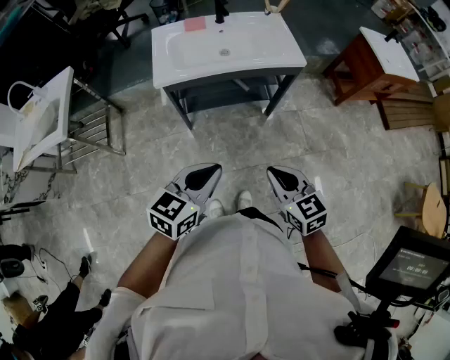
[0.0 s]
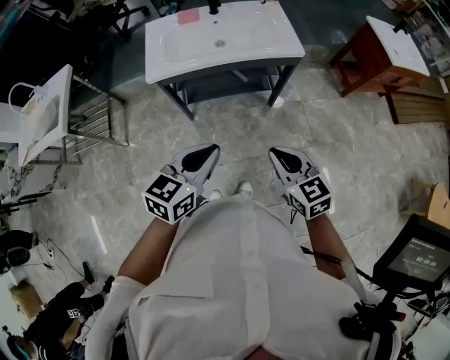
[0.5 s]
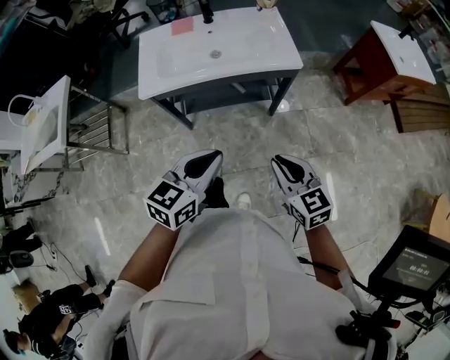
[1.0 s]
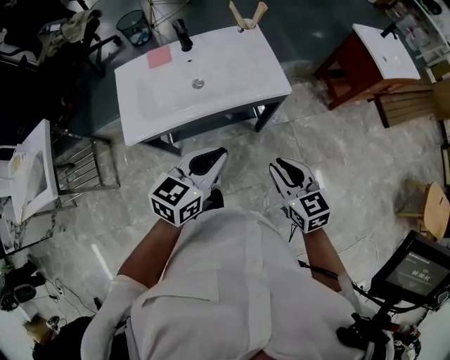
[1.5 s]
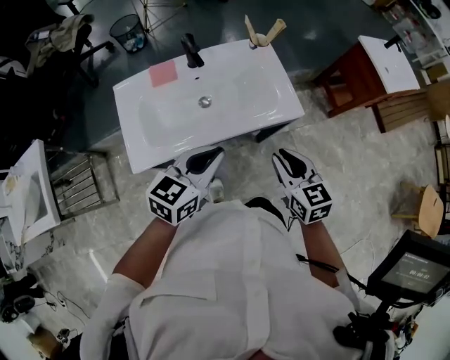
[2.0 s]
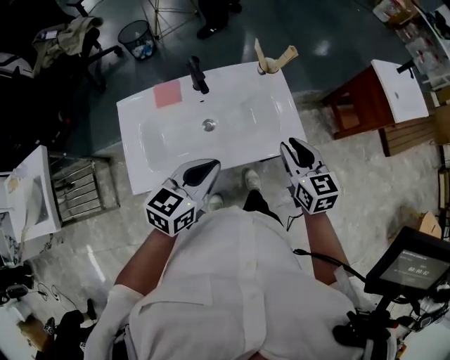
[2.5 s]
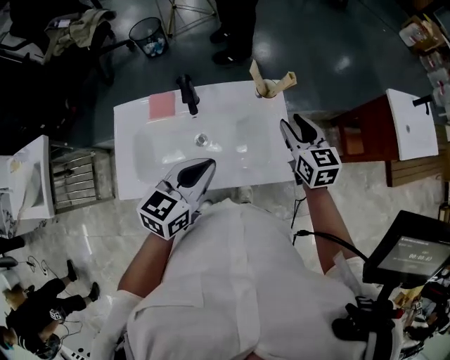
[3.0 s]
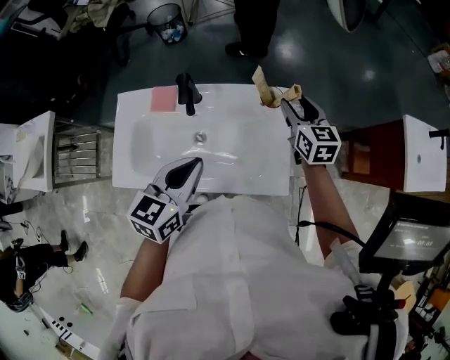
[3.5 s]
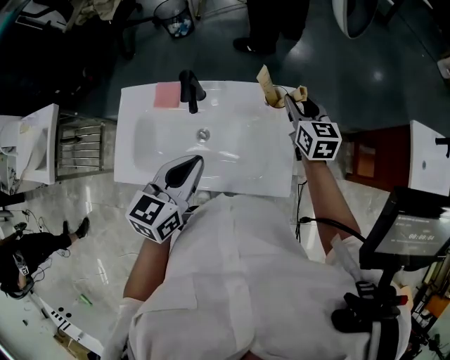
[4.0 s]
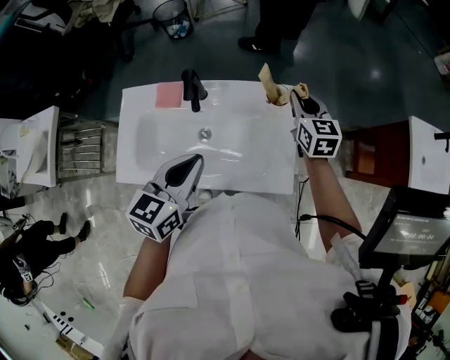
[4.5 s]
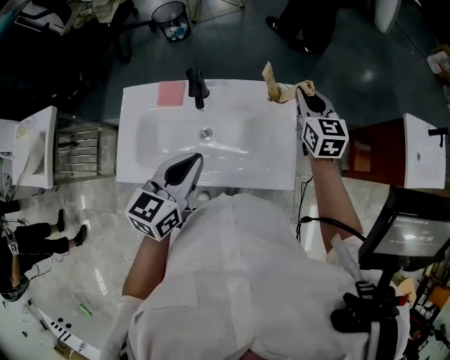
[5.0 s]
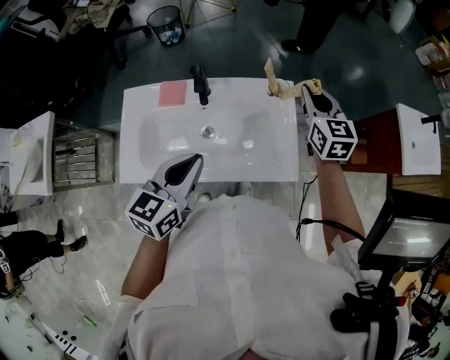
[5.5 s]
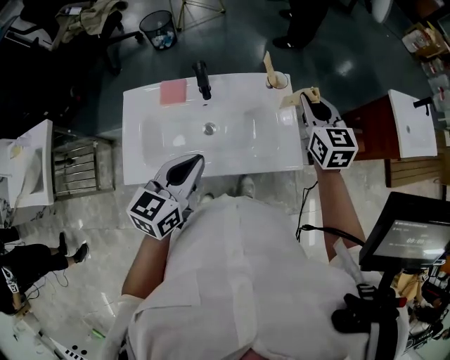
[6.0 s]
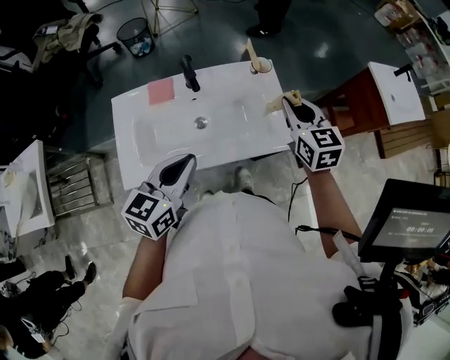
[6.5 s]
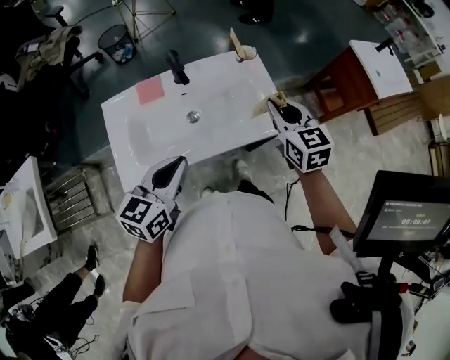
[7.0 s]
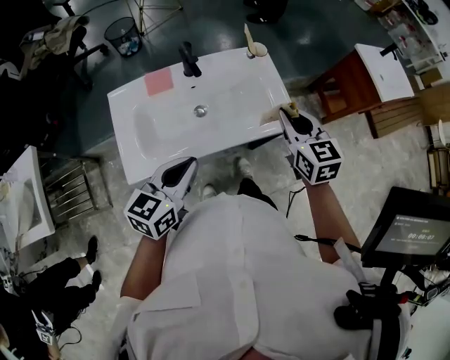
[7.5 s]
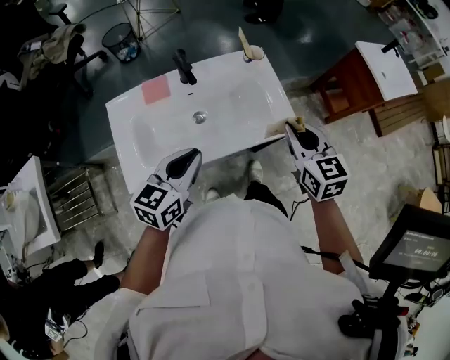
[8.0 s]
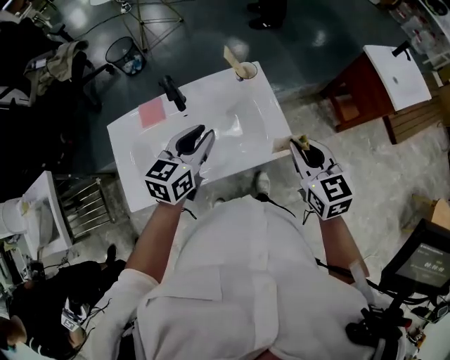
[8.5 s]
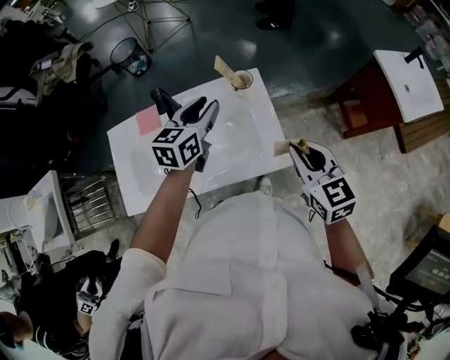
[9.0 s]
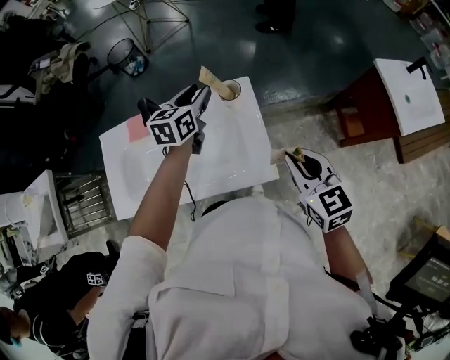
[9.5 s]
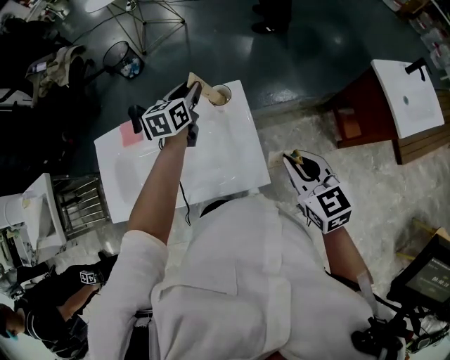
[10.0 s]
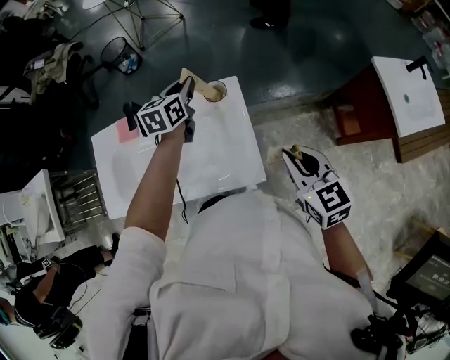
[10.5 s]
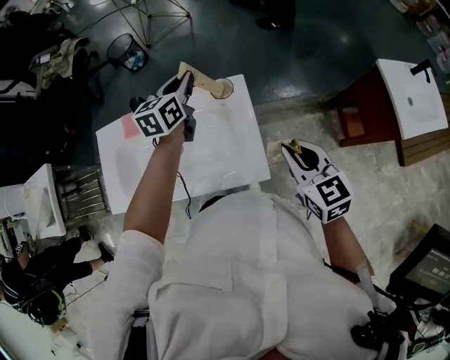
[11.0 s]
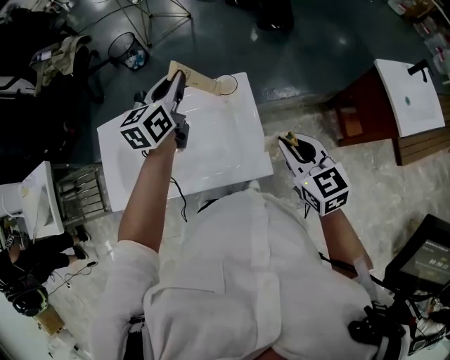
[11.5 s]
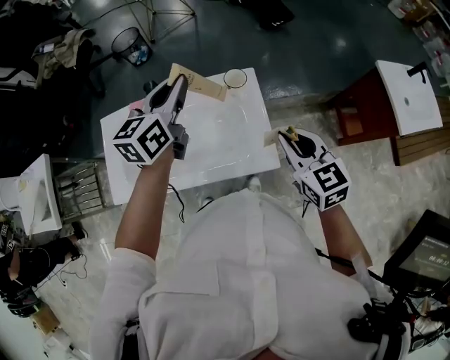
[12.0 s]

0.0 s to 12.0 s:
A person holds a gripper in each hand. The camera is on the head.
0.0 to 2.0 s: Both grippers travel together forward, some 40 cm.
2.0 to 4.0 s: The right gripper moves forward, about 40 cm, and opens. Meanwhile the left gripper shifts about 20 cm forward, and swivels about 30 degrees.
4.0 to 6.0 s: The left gripper heads backward and to the left, covering some 10 cm. Meanwhile the right gripper travels backward and upward by about 15 cm, and closes its fingers.
6.0 to 8.0 s: The right gripper is displaced backward by some 20 cm.
8.0 to 10.0 s: The left gripper is displaced forward by about 40 cm, turns by approximately 30 degrees, and opens; the right gripper travels to the right and forward by about 20 cm.
10.0 to 12.0 s: The left gripper goes about 20 cm upward and backward, and closes its fingers. The right gripper changes place by roughly 5 cm.

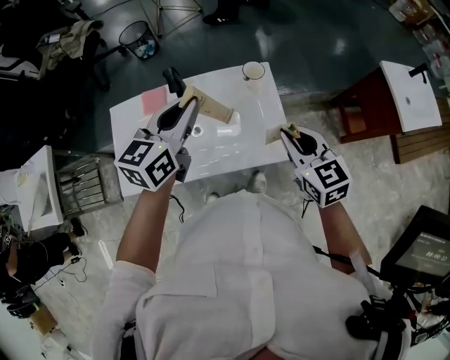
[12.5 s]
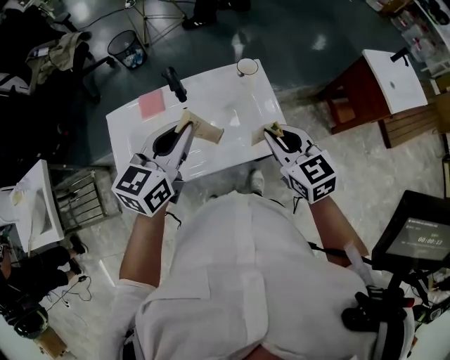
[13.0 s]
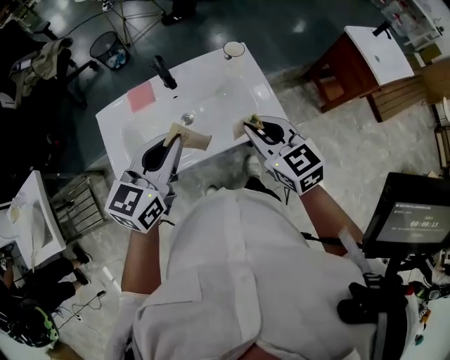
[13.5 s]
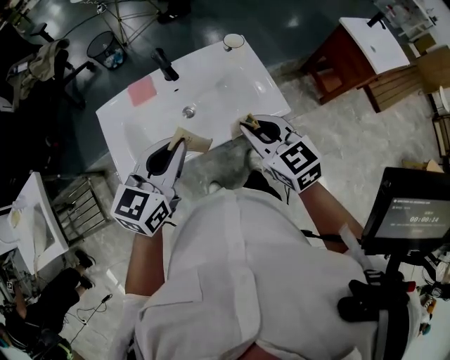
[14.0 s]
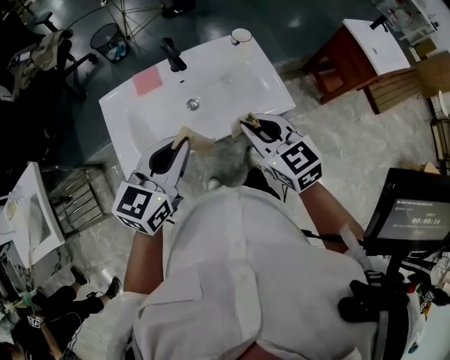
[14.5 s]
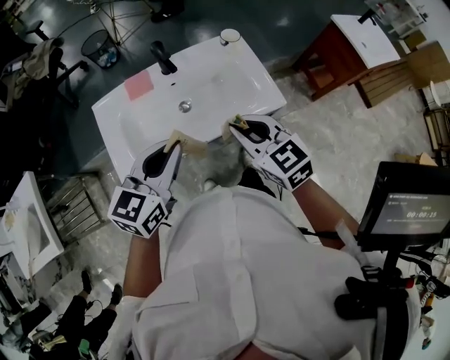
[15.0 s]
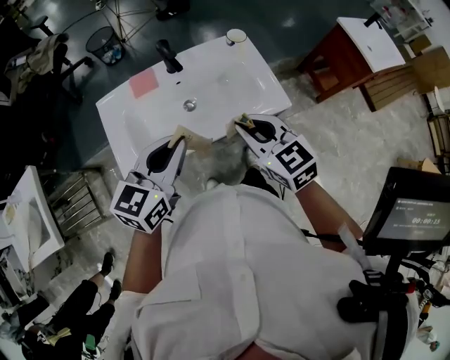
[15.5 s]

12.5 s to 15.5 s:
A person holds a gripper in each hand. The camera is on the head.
12.5 to 14.0 s: The right gripper goes roughly 20 cm to the left and backward. Meanwhile the left gripper shifts approximately 20 cm backward.
14.0 to 15.5 s: There are only small adjustments of the grippers.

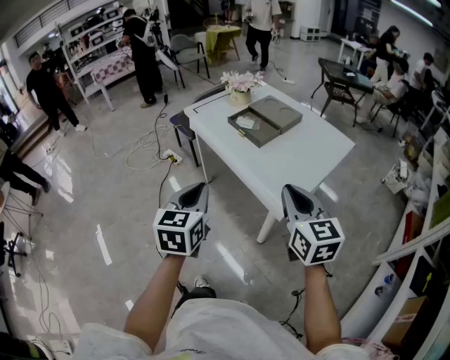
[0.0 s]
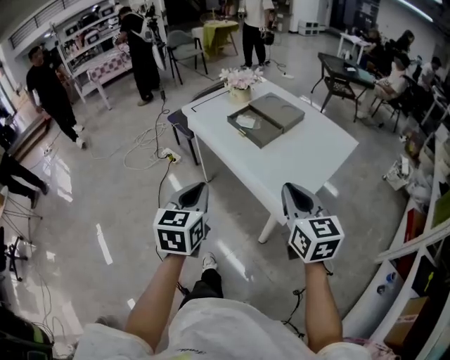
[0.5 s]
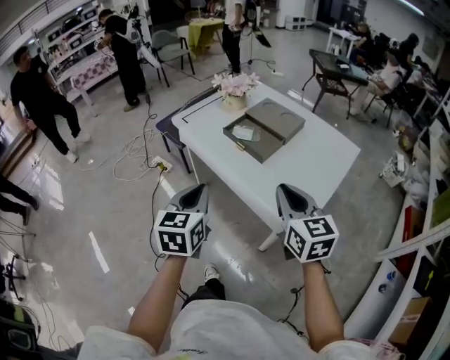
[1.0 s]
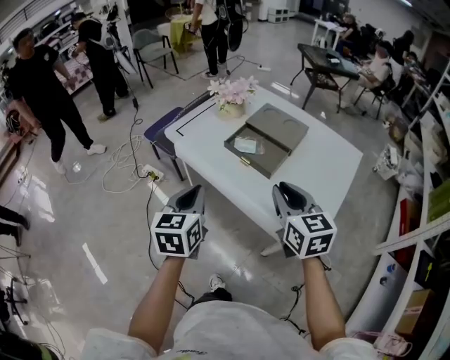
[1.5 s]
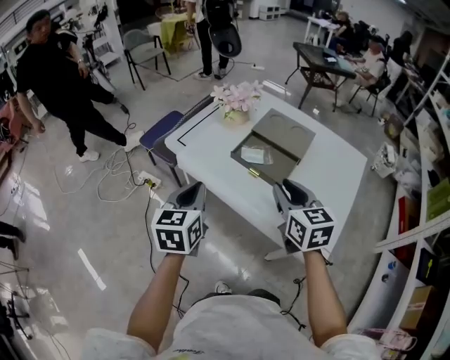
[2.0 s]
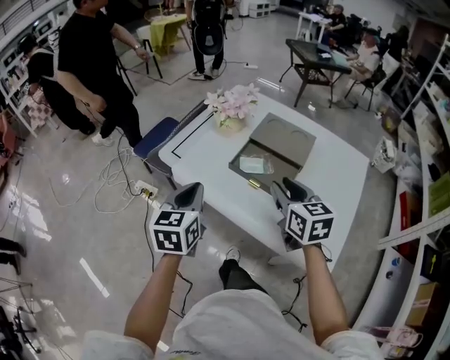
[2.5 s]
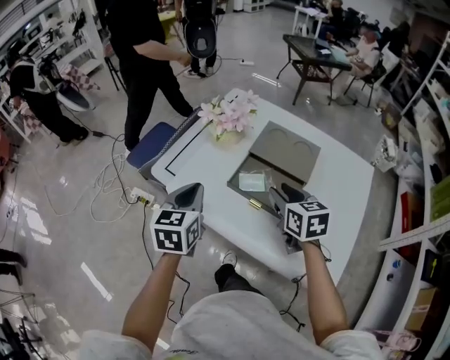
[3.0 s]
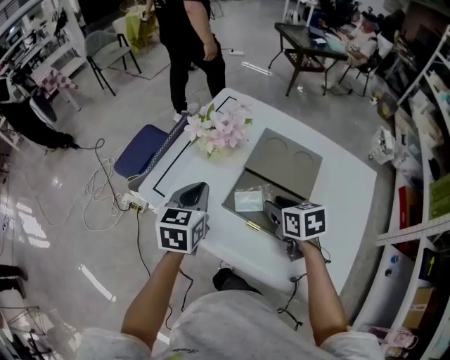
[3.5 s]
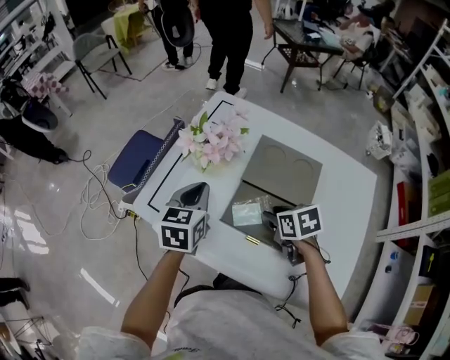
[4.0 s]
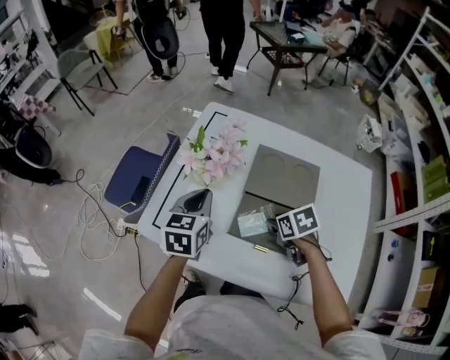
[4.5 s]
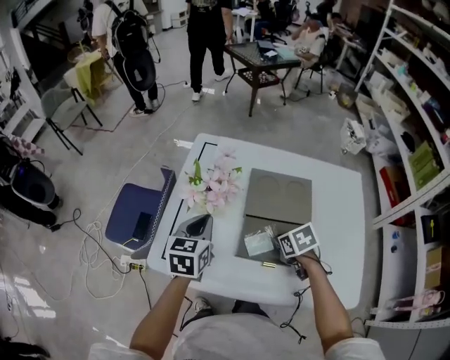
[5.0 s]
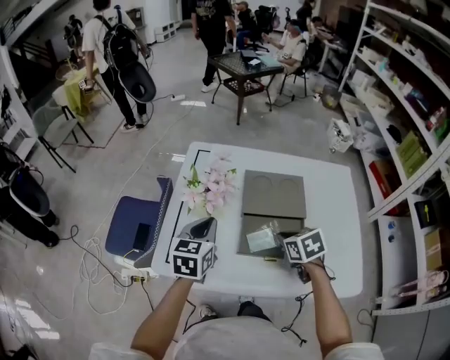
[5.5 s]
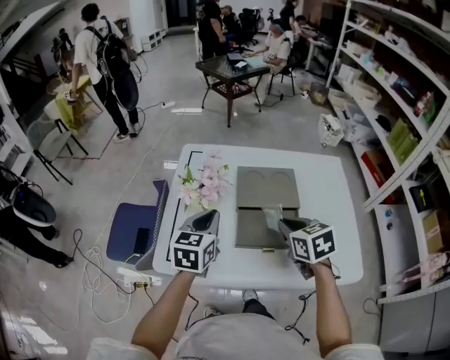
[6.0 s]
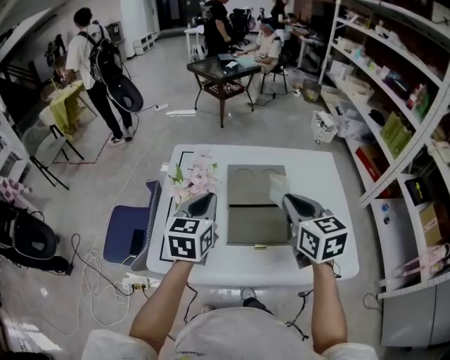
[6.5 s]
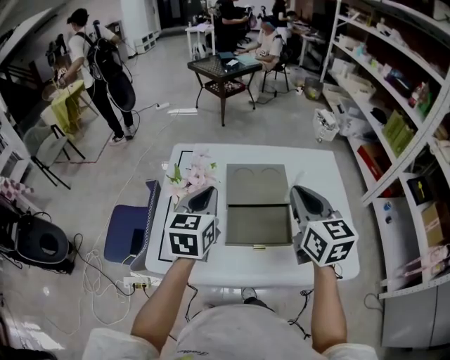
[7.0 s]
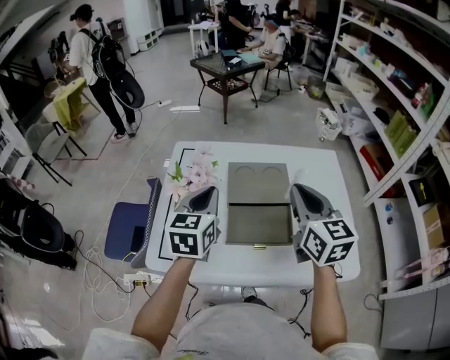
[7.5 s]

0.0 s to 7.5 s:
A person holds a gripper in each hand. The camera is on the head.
0.0 to 2.0 s: The two grippers go approximately 30 cm forward. The right gripper opens up.
2.0 to 4.0 s: The right gripper moves forward and downward, roughly 25 cm, and tilts its fingers roughly 30 degrees downward. The left gripper goes approximately 30 cm forward.
4.0 to 5.5 s: The right gripper closes; the left gripper rotates roughly 20 degrees.
5.5 to 7.5 s: The left gripper travels upward and to the right by roughly 10 cm; the right gripper is displaced upward by roughly 20 cm, and tilts its fingers about 40 degrees upward.

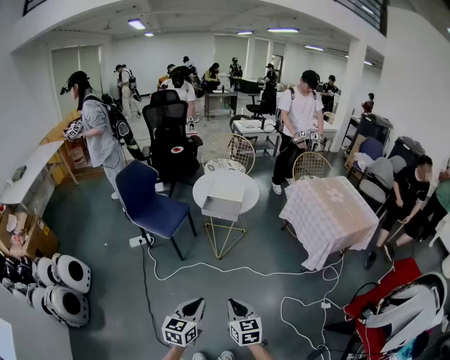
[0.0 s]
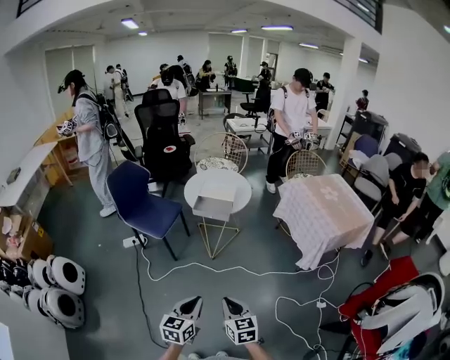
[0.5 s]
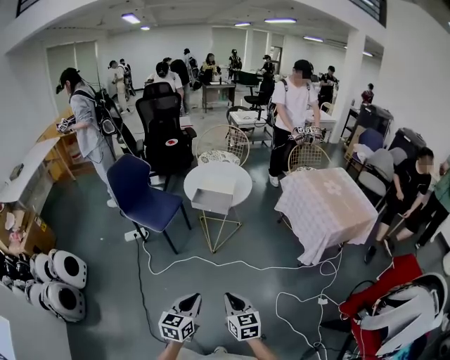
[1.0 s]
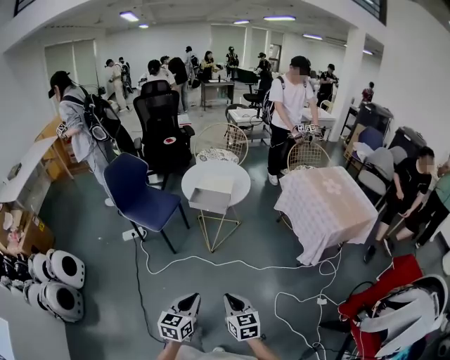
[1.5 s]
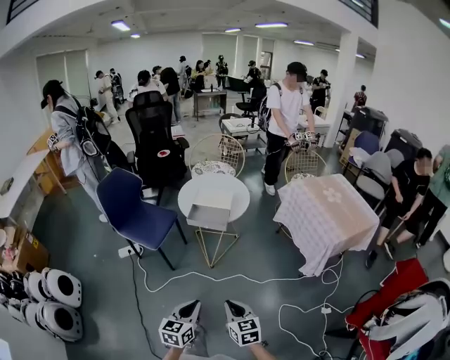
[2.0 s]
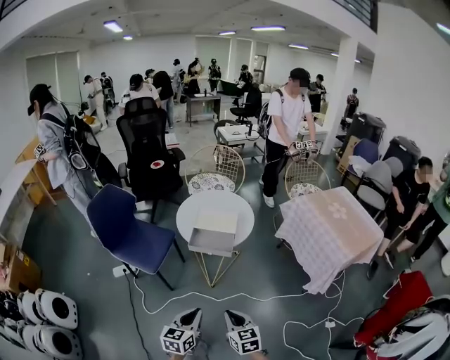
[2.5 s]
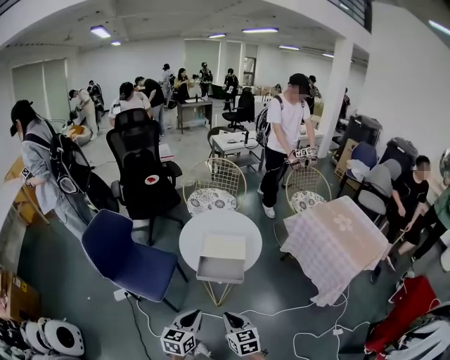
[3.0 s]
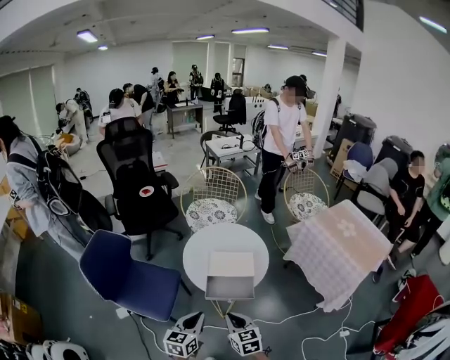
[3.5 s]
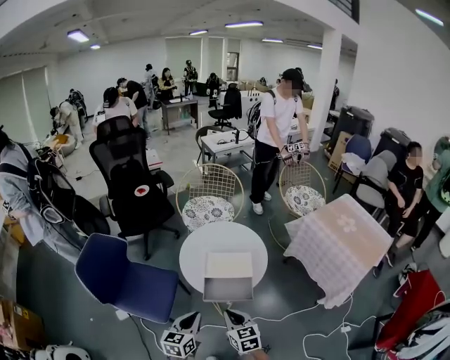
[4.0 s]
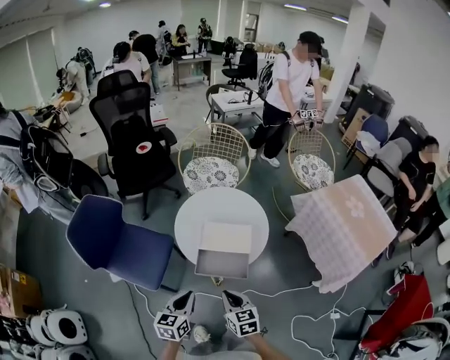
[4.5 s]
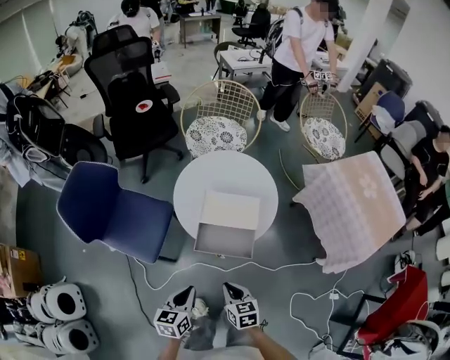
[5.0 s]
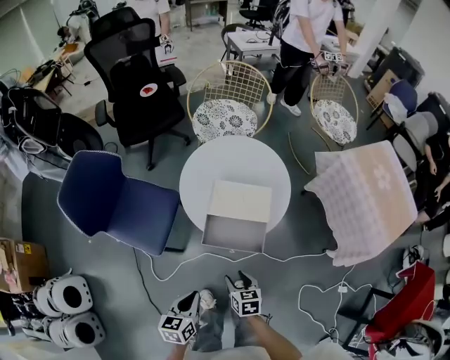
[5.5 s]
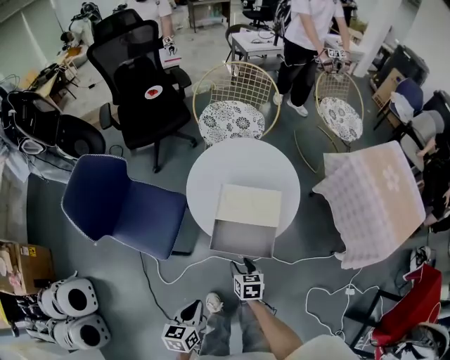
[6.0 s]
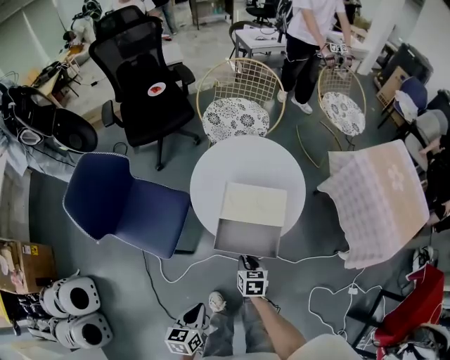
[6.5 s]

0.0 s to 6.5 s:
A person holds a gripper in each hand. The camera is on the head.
0.0 to 2.0 s: Both grippers travel together forward, approximately 10 cm.
2.0 to 4.5 s: The pair of grippers is taken forward, approximately 40 cm.
4.5 to 6.5 s: The right gripper moves downward, about 20 cm, rotates approximately 20 degrees, and opens and closes again, while the left gripper travels downward and backward by approximately 15 cm, and changes its angle by some 20 degrees.
